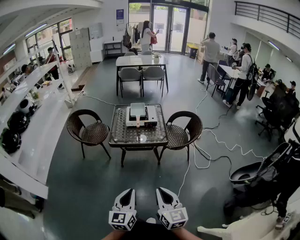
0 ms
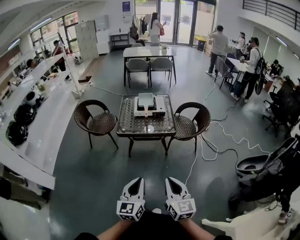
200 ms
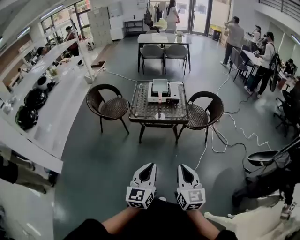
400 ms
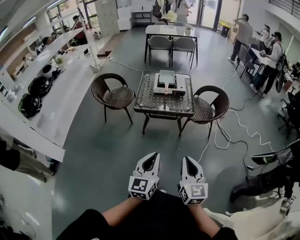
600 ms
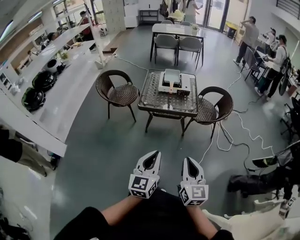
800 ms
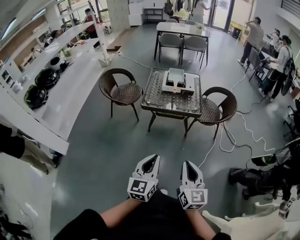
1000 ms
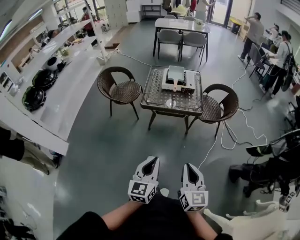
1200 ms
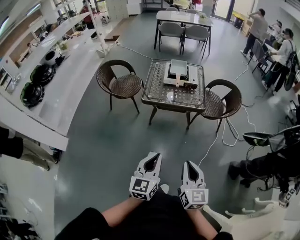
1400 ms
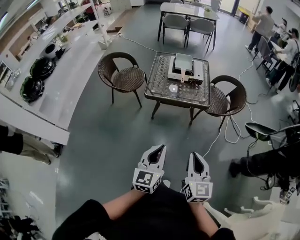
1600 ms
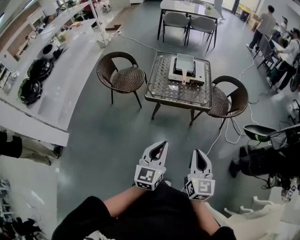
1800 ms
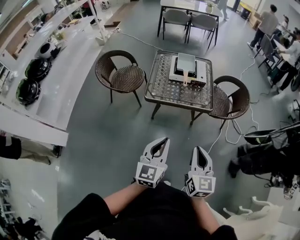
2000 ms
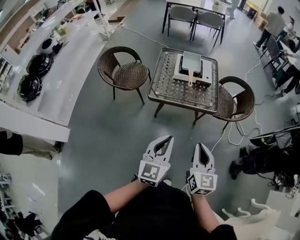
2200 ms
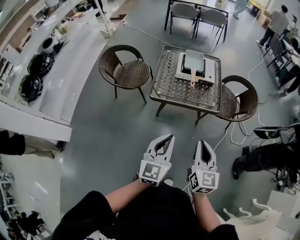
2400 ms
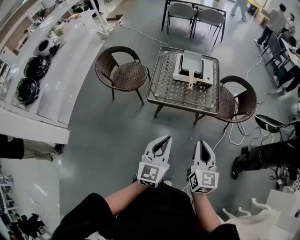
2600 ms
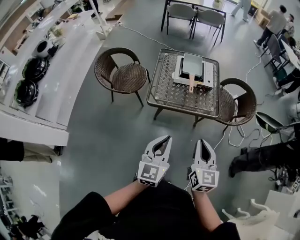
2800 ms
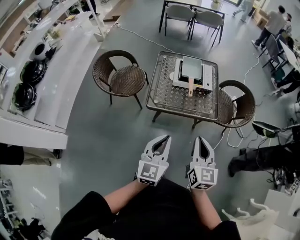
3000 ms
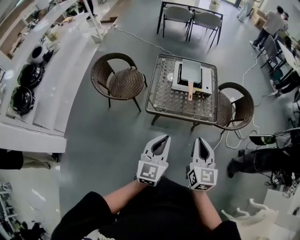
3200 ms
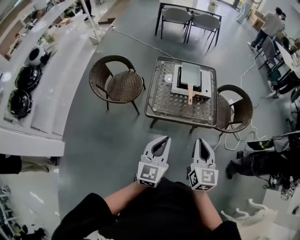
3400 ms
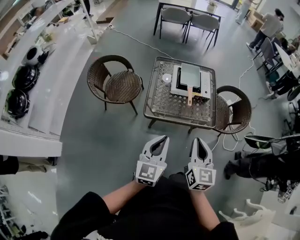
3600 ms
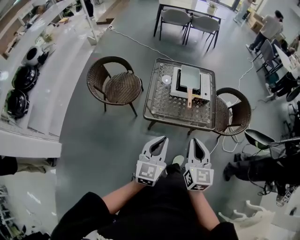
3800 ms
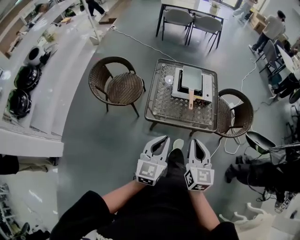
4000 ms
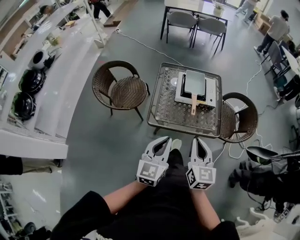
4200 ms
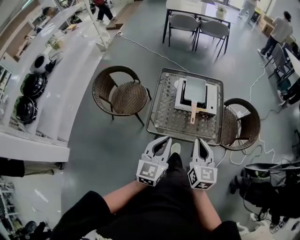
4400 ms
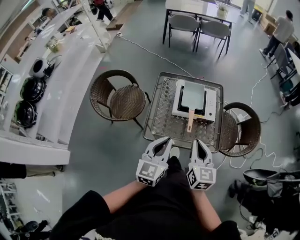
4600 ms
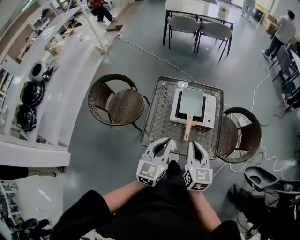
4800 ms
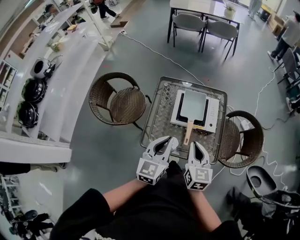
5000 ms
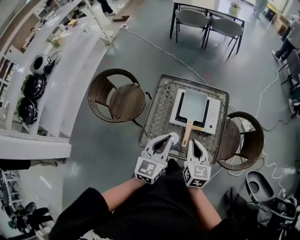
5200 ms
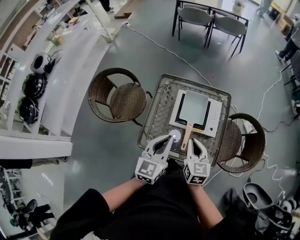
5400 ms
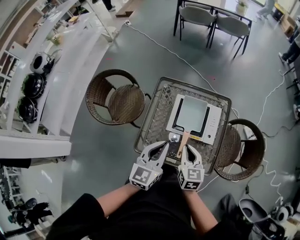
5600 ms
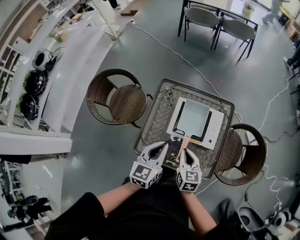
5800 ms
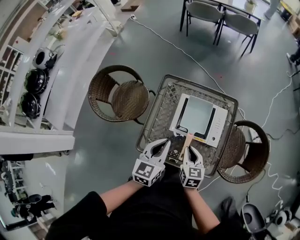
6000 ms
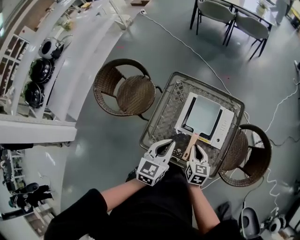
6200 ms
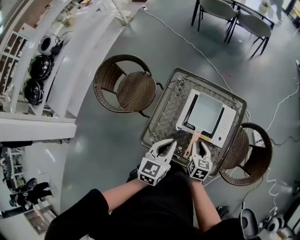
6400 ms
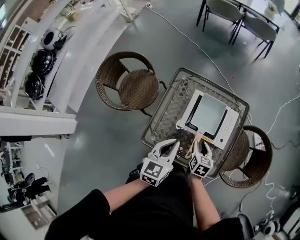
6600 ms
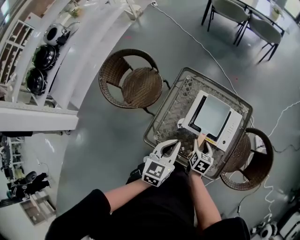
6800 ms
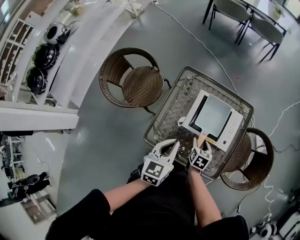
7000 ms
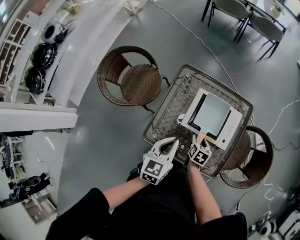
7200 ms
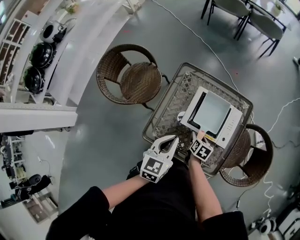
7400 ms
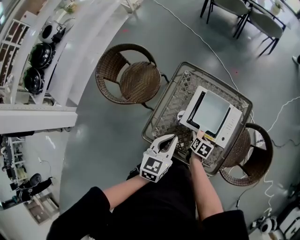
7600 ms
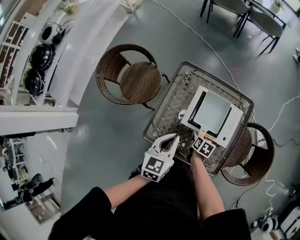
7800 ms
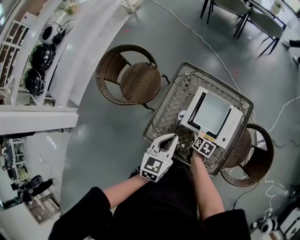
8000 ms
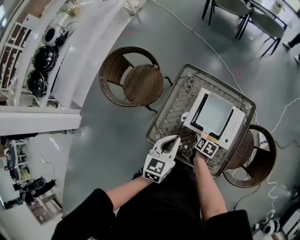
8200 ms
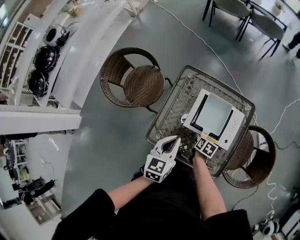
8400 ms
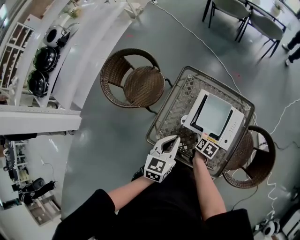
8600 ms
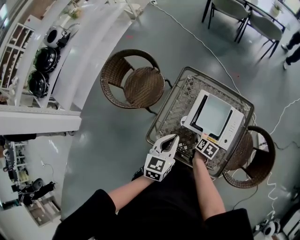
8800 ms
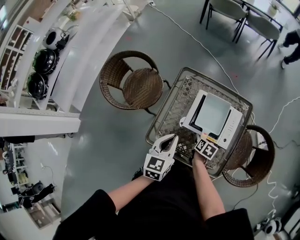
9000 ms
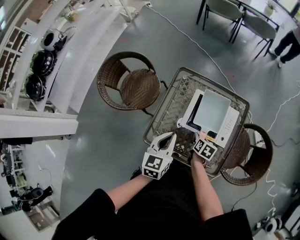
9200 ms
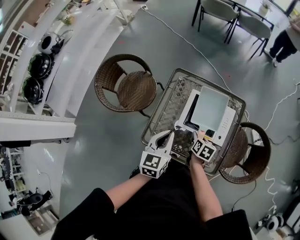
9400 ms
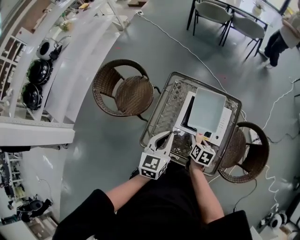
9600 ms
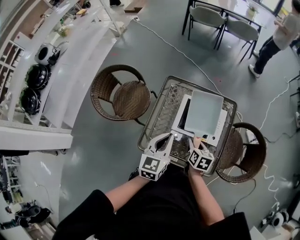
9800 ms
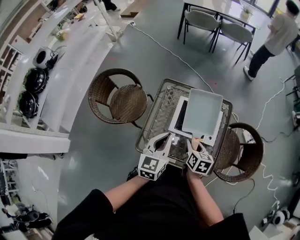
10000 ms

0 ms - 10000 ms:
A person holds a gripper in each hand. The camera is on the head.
0 ms - 1400 ms: The two grippers go roughly 5 cm forward.
1400 ms - 2800 ms: Both grippers travel together forward, about 30 cm.
2800 ms - 4200 ms: The left gripper goes about 15 cm forward; the right gripper is displaced forward and to the left by roughly 15 cm.
4200 ms - 5800 ms: The right gripper is displaced forward and downward by some 35 cm, and turns by roughly 20 degrees; the left gripper shifts roughly 35 cm forward.
5800 ms - 7200 ms: The left gripper moves downward, approximately 5 cm. The right gripper goes approximately 20 cm downward, changes its angle by about 30 degrees, and opens its fingers.
7200 ms - 8600 ms: The grippers stay close to where they were, moving slightly.
8600 ms - 10000 ms: The left gripper is displaced upward by roughly 5 cm. Meanwhile the right gripper heads upward, covering about 20 cm, and rotates some 20 degrees.

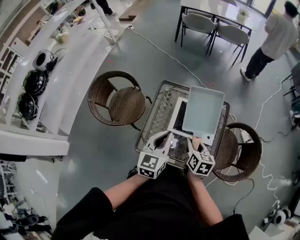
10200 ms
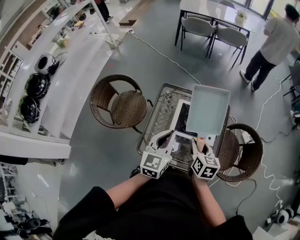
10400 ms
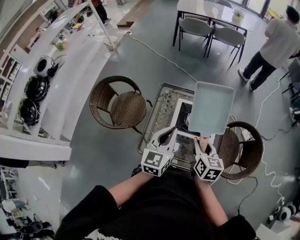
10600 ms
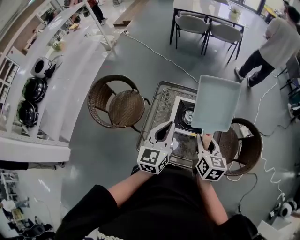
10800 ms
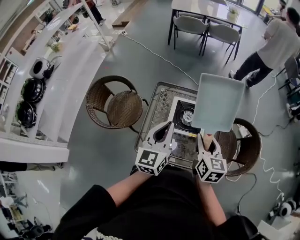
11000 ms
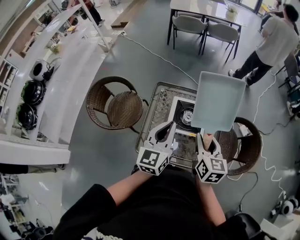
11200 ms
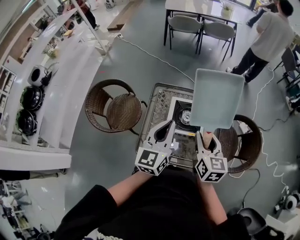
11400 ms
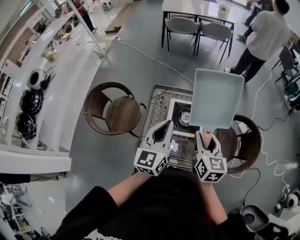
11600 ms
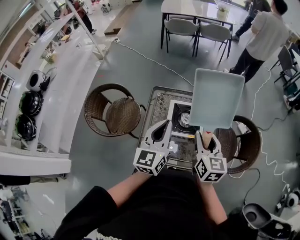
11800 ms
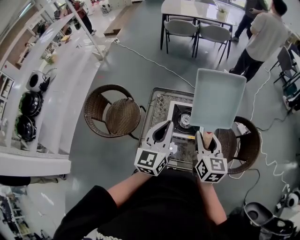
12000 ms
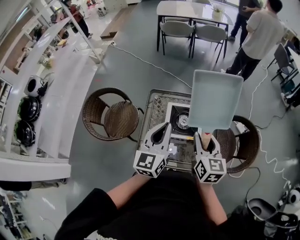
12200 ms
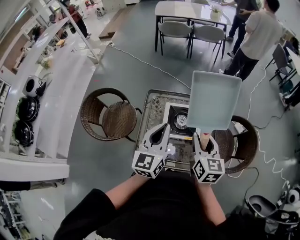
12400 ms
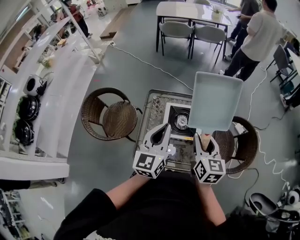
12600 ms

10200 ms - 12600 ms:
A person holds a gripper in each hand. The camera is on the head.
10200 ms - 11400 ms: The right gripper travels upward by about 15 cm. Meanwhile the left gripper is displaced upward by about 10 cm.
11400 ms - 12600 ms: The grippers stay close to where they were, moving slightly.

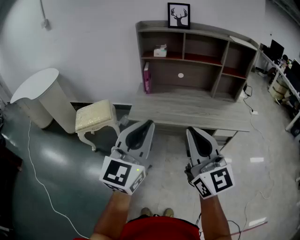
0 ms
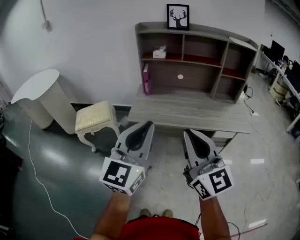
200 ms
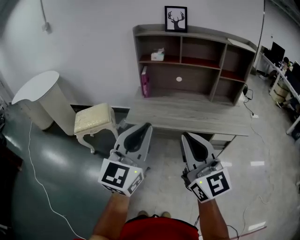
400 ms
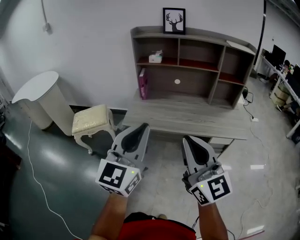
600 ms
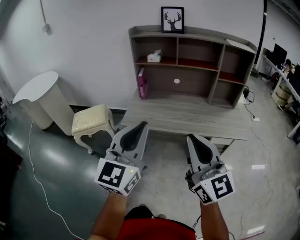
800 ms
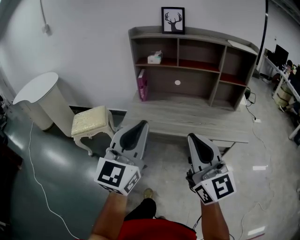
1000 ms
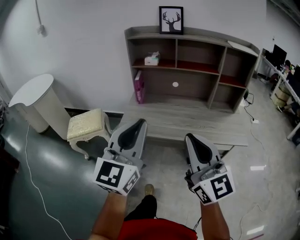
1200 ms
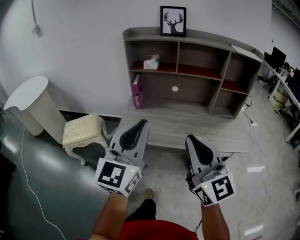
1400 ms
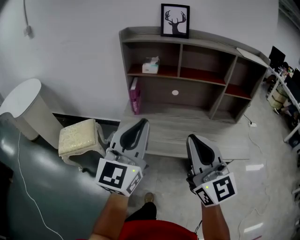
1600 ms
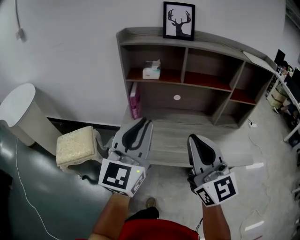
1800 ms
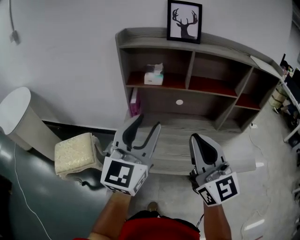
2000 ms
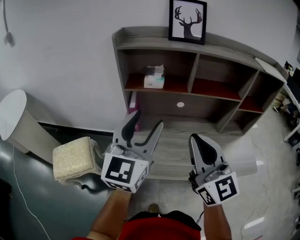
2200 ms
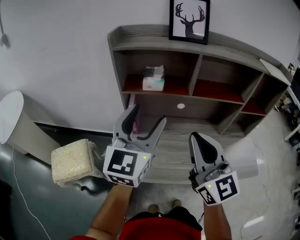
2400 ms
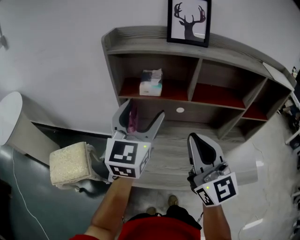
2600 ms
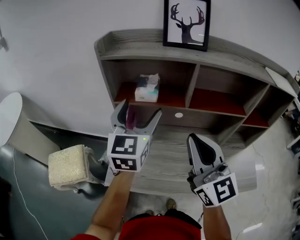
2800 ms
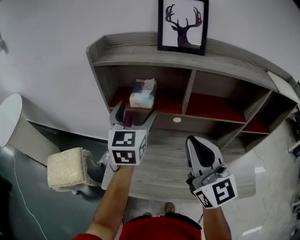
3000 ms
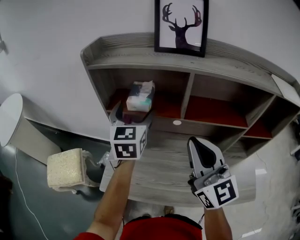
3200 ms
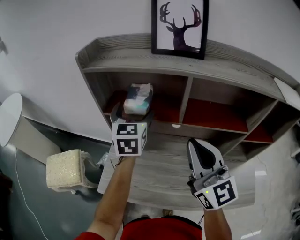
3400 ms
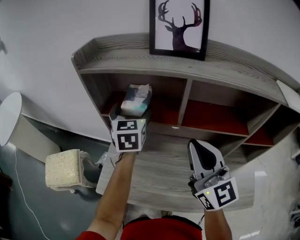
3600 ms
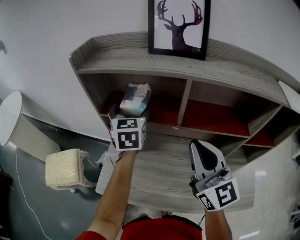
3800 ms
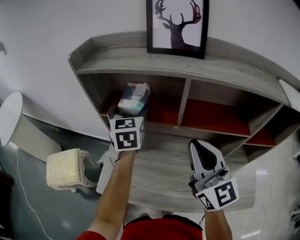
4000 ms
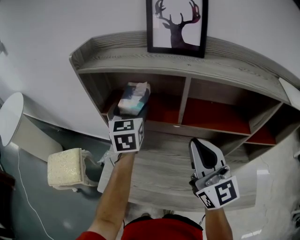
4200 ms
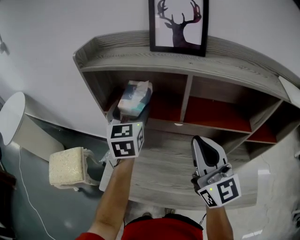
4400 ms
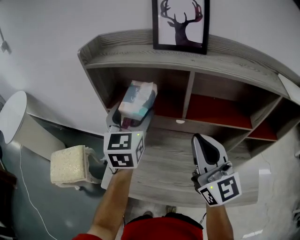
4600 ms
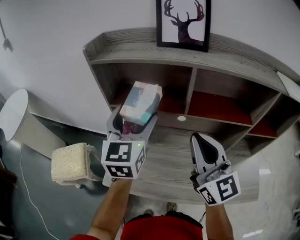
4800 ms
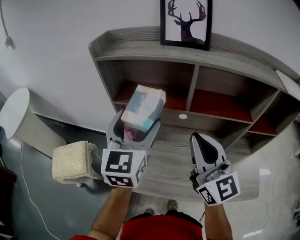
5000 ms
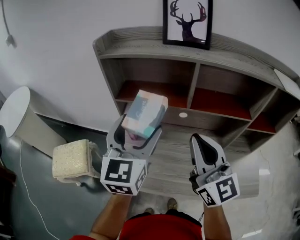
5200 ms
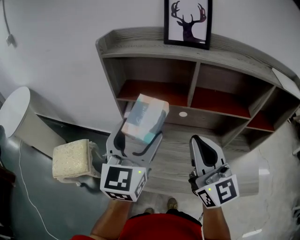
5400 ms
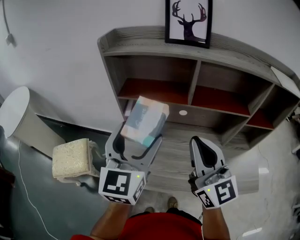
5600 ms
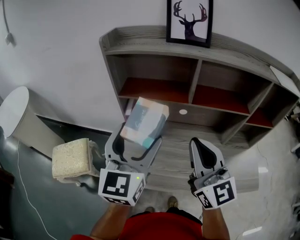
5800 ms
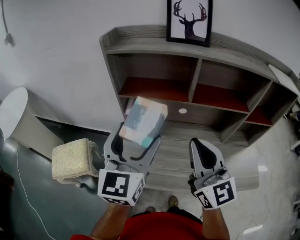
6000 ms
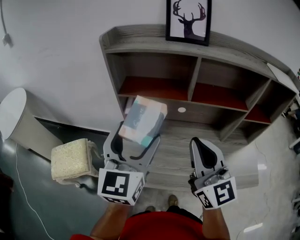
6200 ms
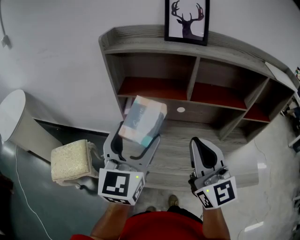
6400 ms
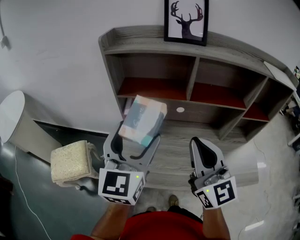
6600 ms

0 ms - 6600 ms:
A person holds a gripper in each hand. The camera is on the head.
0 ms - 1600 ms: Both grippers travel together forward, about 20 cm.
1600 ms - 3200 ms: Both grippers move forward, about 40 cm. The left gripper swivels about 20 degrees, and opens its fingers.
3200 ms - 5000 ms: The left gripper goes some 10 cm backward.
5000 ms - 6600 ms: The grippers both shift backward by roughly 10 cm.

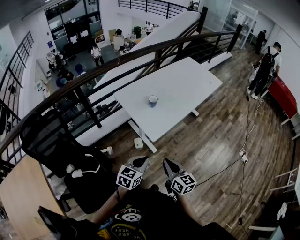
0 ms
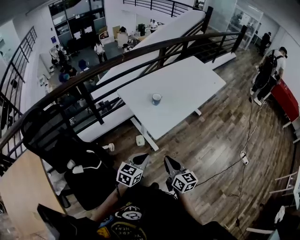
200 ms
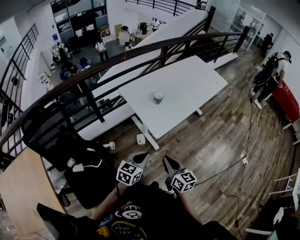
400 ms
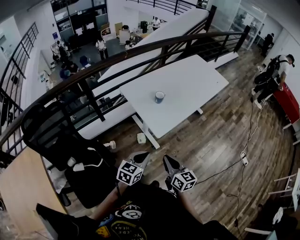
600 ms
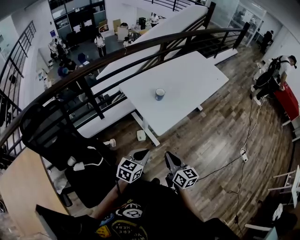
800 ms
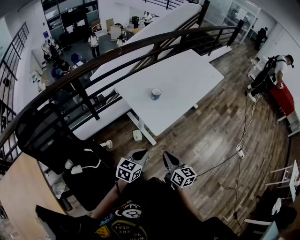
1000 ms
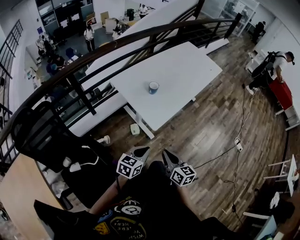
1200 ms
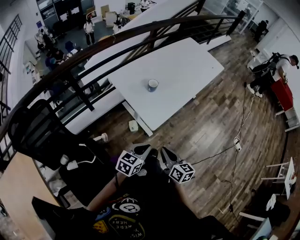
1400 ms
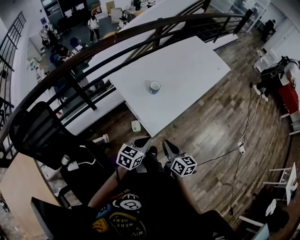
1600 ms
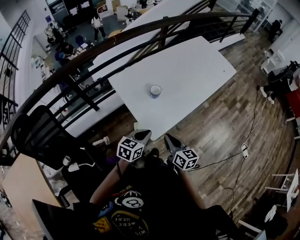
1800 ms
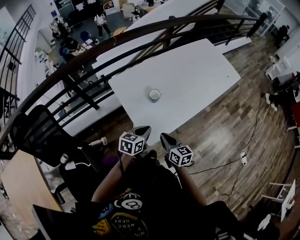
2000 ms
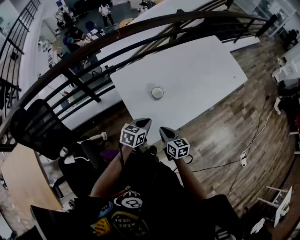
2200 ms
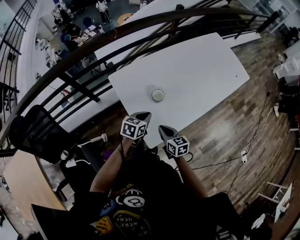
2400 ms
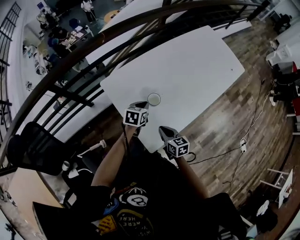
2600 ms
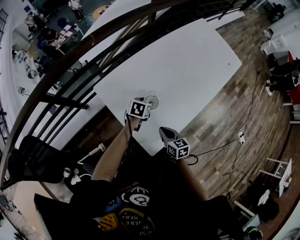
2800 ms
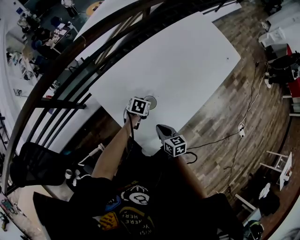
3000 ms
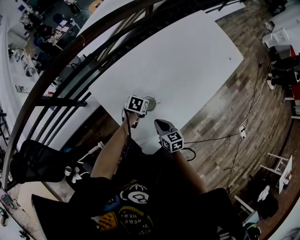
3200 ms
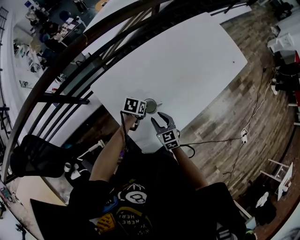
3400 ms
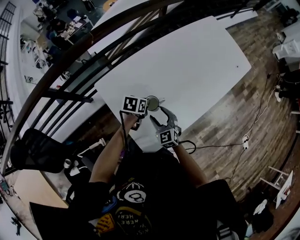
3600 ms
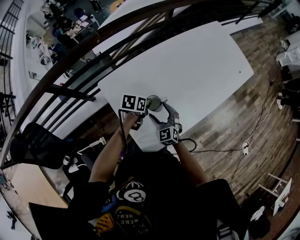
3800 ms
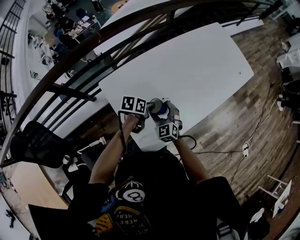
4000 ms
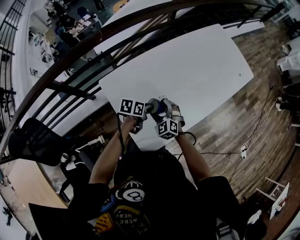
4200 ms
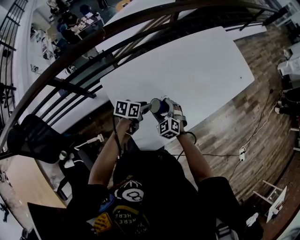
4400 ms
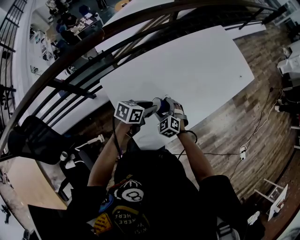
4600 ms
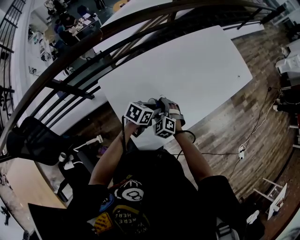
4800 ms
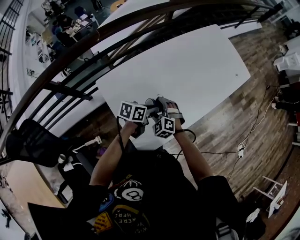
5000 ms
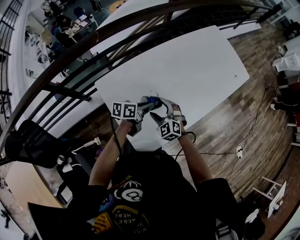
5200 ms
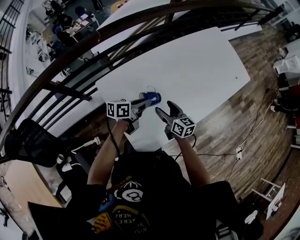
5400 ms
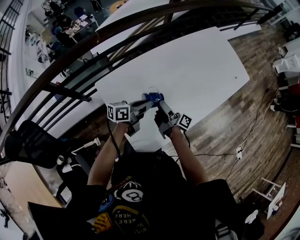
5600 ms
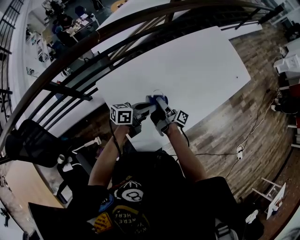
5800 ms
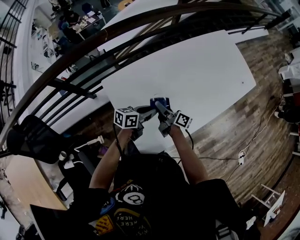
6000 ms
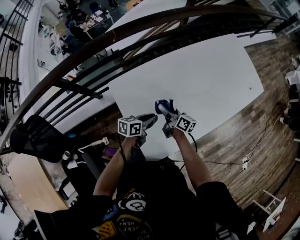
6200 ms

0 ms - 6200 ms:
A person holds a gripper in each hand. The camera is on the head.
0 ms - 1600 ms: Both grippers travel together forward and downward, approximately 15 cm.
1600 ms - 3200 ms: Both grippers travel together forward and downward, roughly 40 cm. The right gripper swivels roughly 20 degrees, while the left gripper angles its fingers downward, by approximately 30 degrees, and opens and closes again.
3200 ms - 4600 ms: The right gripper goes about 10 cm forward, twists about 60 degrees counterclockwise, seen from behind, and opens up. Meanwhile the left gripper travels upward by about 15 cm, and swivels roughly 30 degrees.
4600 ms - 6200 ms: The right gripper is displaced forward by about 5 cm, reaches roughly 10 cm upward, then returns, and rolls clockwise, seen from behind, by about 80 degrees, while the left gripper is displaced downward by approximately 5 cm.
